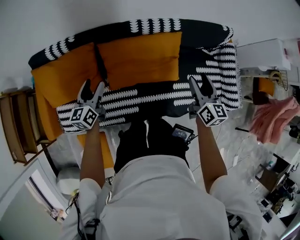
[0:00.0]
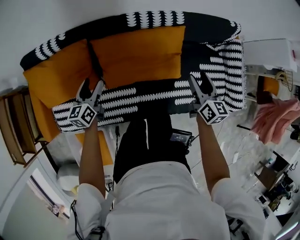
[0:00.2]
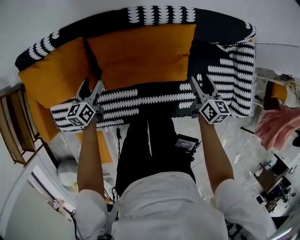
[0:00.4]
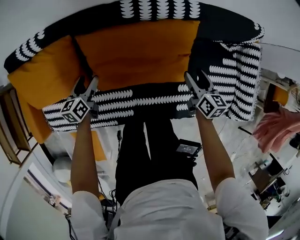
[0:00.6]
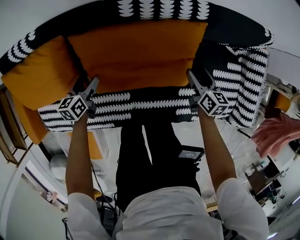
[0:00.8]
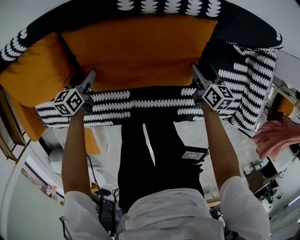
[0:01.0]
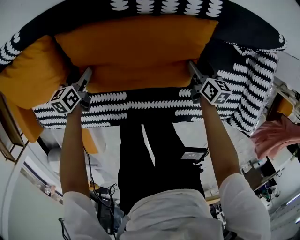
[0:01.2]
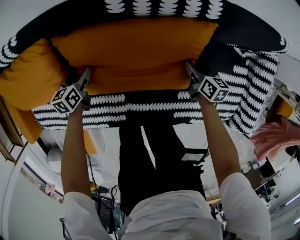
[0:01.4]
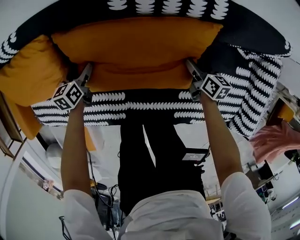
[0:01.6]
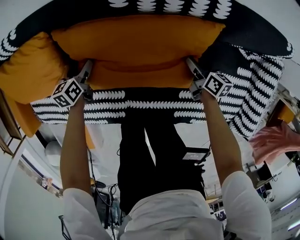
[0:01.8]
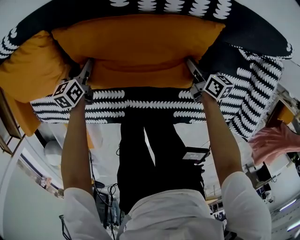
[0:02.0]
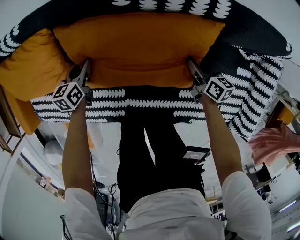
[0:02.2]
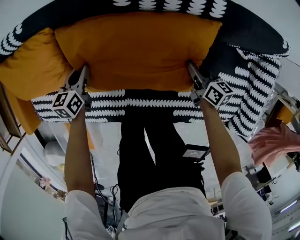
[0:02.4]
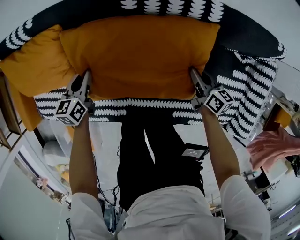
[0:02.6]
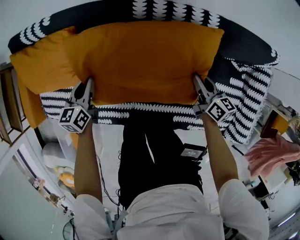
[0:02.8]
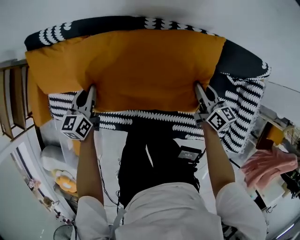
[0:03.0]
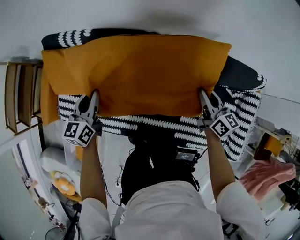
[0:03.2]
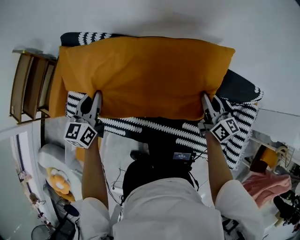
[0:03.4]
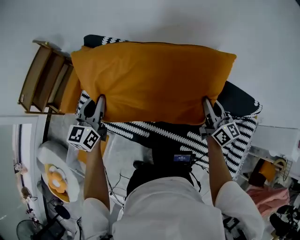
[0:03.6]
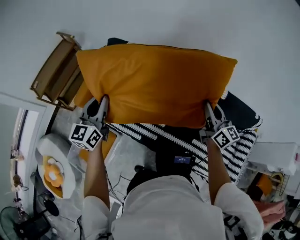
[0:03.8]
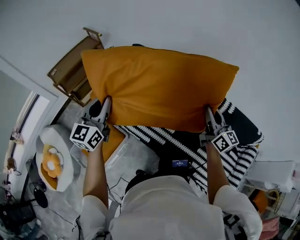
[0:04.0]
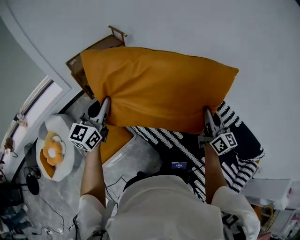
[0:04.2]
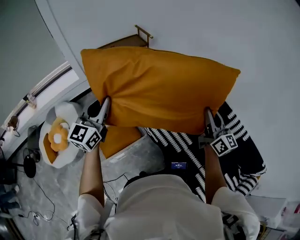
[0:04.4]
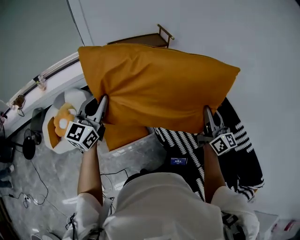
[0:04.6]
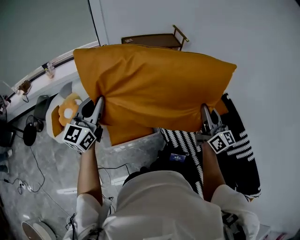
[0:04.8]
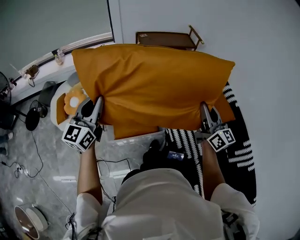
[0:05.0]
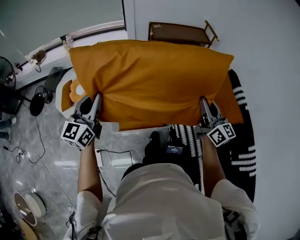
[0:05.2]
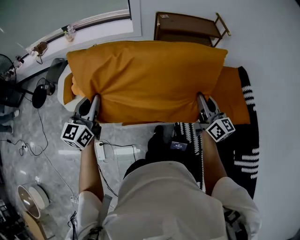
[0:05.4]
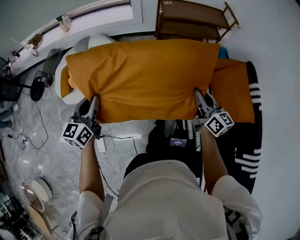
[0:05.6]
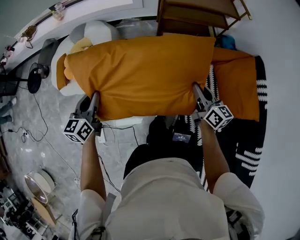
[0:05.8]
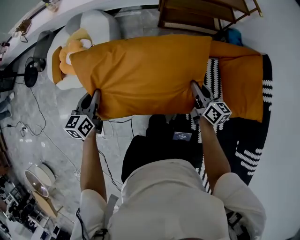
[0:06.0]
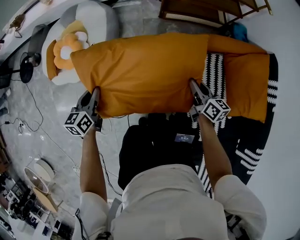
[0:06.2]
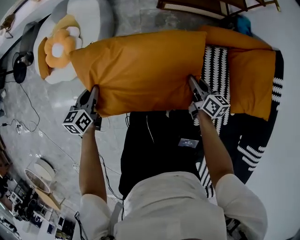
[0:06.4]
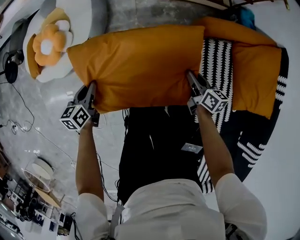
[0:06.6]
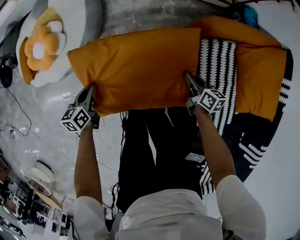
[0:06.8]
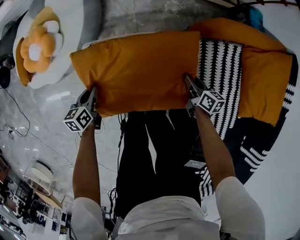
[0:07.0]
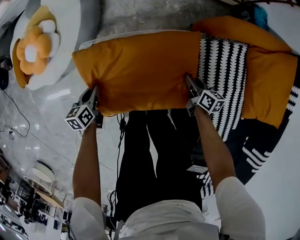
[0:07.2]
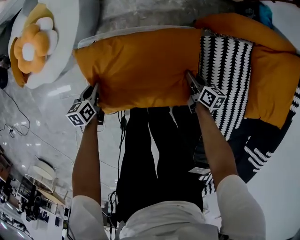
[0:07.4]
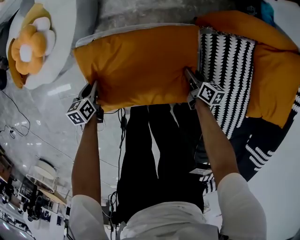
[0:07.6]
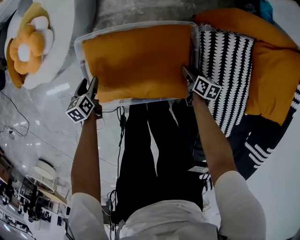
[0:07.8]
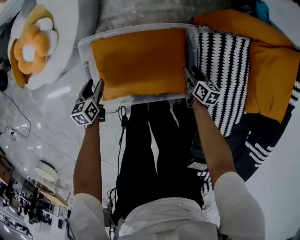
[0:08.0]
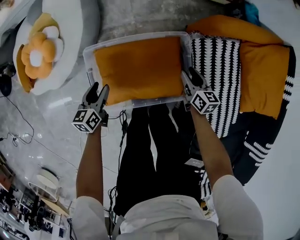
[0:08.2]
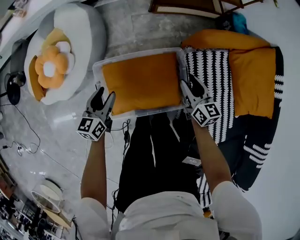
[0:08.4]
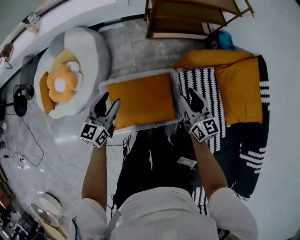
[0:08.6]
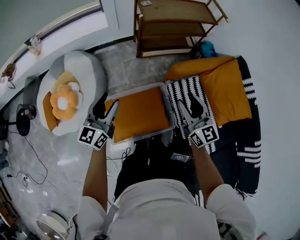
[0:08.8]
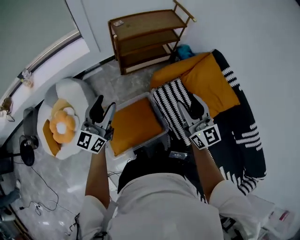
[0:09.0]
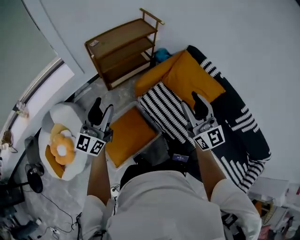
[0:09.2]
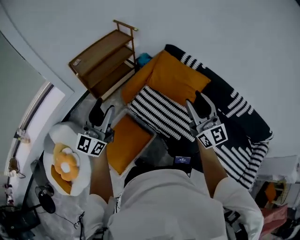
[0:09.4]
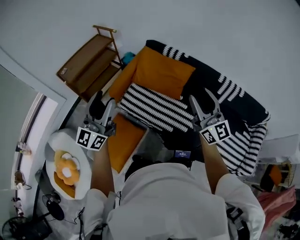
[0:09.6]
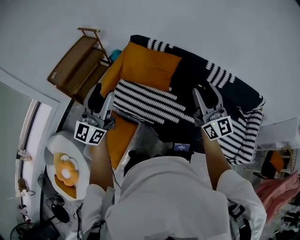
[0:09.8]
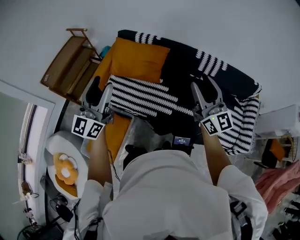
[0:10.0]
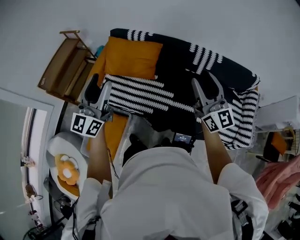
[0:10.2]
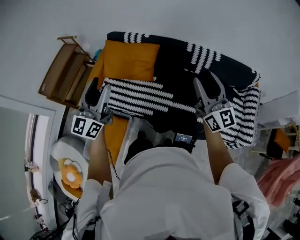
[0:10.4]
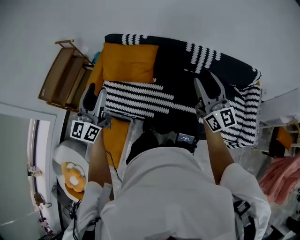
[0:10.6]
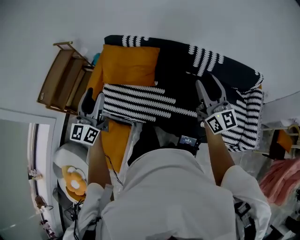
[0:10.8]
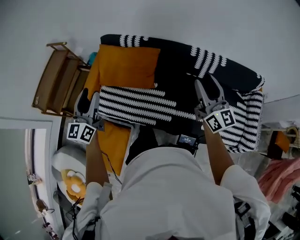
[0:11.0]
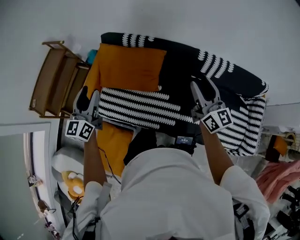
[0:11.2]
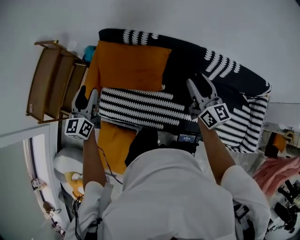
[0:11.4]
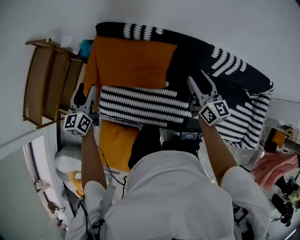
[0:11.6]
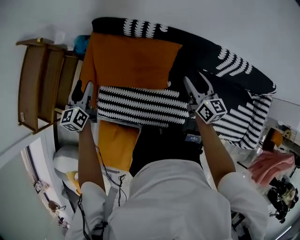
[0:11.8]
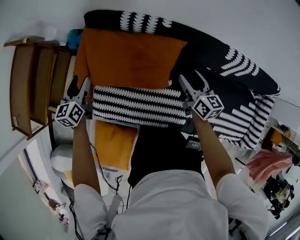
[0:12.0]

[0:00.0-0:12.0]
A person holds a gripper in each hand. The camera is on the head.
0:00.0 to 0:01.6: The left gripper moves downward, roughly 35 cm, and tips its fingers downward by approximately 30 degrees. Meanwhile the right gripper heads downward and forward, covering about 50 cm, and swivels approximately 40 degrees.
0:01.6 to 0:03.0: Both grippers travel together upward, some 25 cm. The right gripper changes its angle by approximately 20 degrees, and closes. Meanwhile the left gripper changes its angle by roughly 20 degrees, and closes its fingers.
0:03.0 to 0:04.4: The pair of grippers is taken about 60 cm. The left gripper angles its fingers upward, by some 30 degrees; the right gripper tilts its fingers approximately 30 degrees upward.
0:04.4 to 0:06.0: The left gripper moves downward, roughly 40 cm, and angles its fingers downward, by some 30 degrees, while the right gripper moves about 60 cm, and angles its fingers downward, by about 30 degrees.
0:06.0 to 0:07.6: Both grippers travel together downward, about 40 cm. The right gripper rotates approximately 30 degrees, while the left gripper swivels about 30 degrees.
0:07.6 to 0:09.0: The grippers both shift upward by some 60 cm. The left gripper tips its fingers upward by roughly 60 degrees, and opens its fingers. The right gripper angles its fingers upward, by approximately 50 degrees.
0:09.0 to 0:10.4: Both grippers are carried roughly 60 cm. The right gripper swivels some 50 degrees. The left gripper turns by approximately 40 degrees.
0:10.4 to 0:12.0: The two grippers travel together, forward and to the left, approximately 50 cm. The two grippers go approximately 40 cm downward. The right gripper tilts its fingers some 40 degrees downward. The left gripper points its fingers approximately 40 degrees further downward.

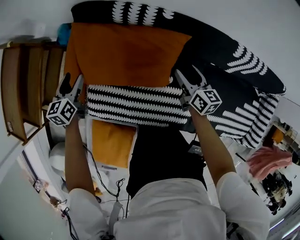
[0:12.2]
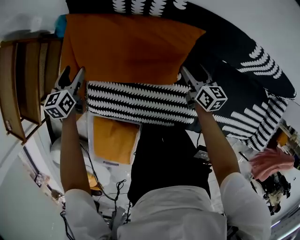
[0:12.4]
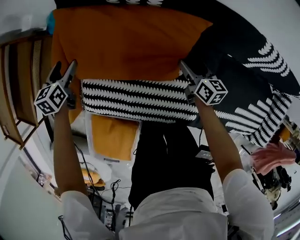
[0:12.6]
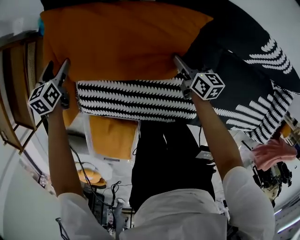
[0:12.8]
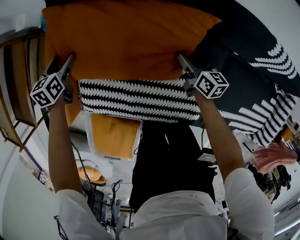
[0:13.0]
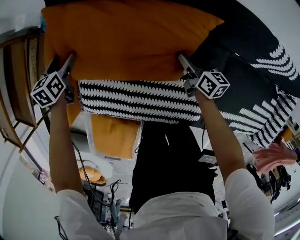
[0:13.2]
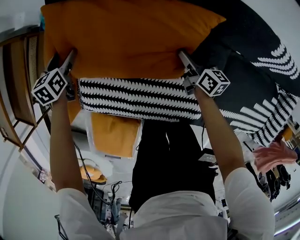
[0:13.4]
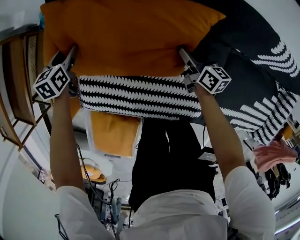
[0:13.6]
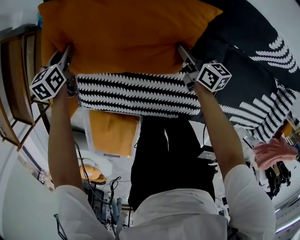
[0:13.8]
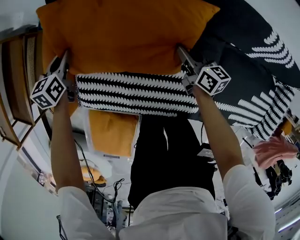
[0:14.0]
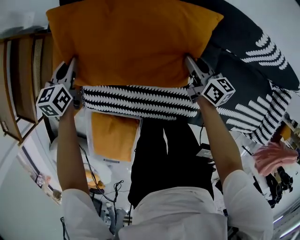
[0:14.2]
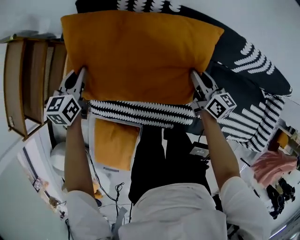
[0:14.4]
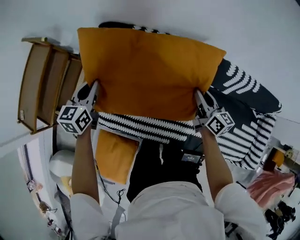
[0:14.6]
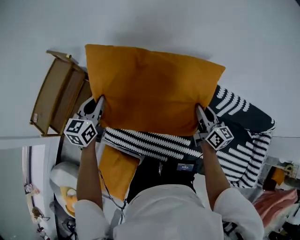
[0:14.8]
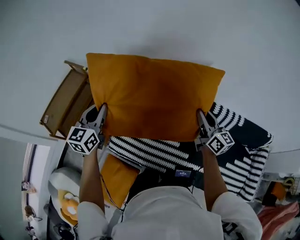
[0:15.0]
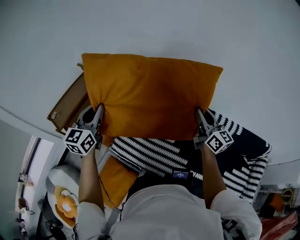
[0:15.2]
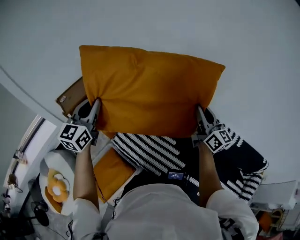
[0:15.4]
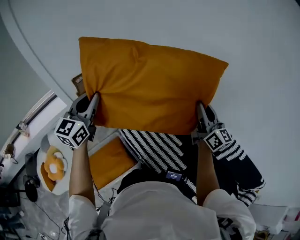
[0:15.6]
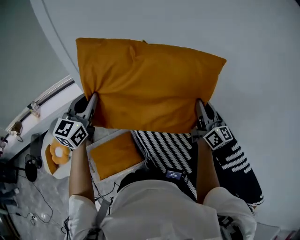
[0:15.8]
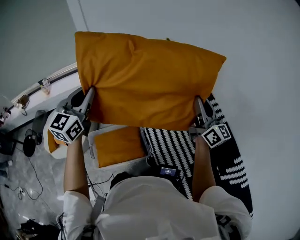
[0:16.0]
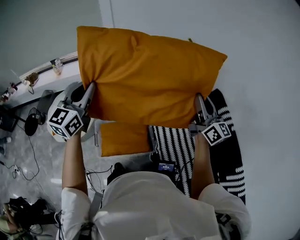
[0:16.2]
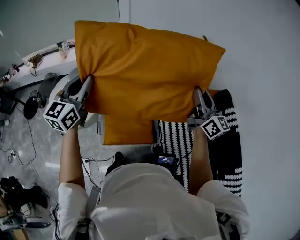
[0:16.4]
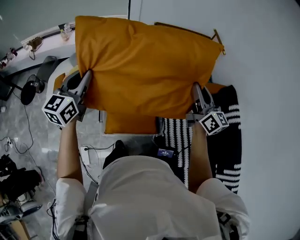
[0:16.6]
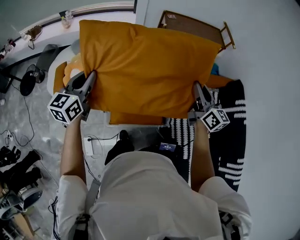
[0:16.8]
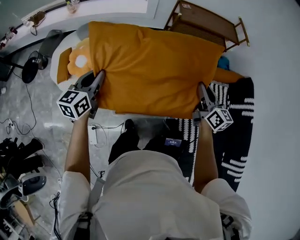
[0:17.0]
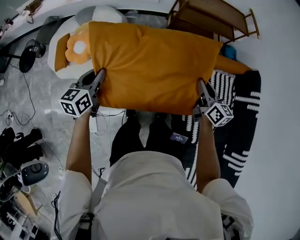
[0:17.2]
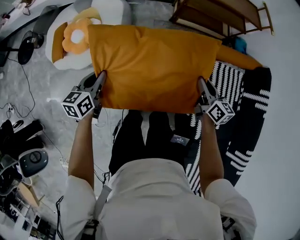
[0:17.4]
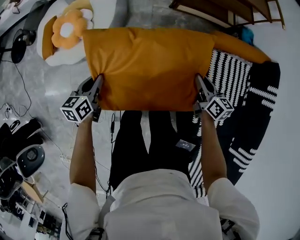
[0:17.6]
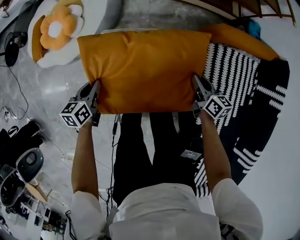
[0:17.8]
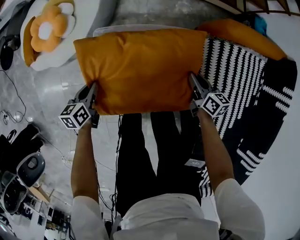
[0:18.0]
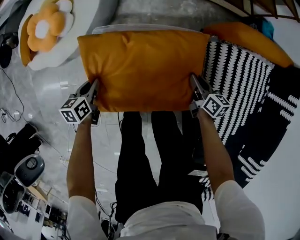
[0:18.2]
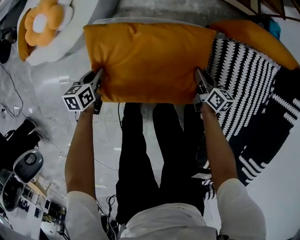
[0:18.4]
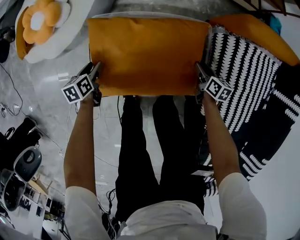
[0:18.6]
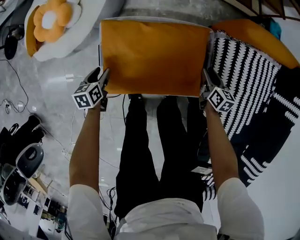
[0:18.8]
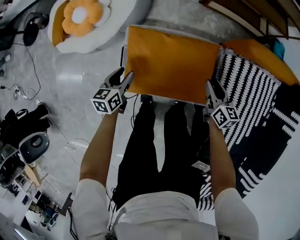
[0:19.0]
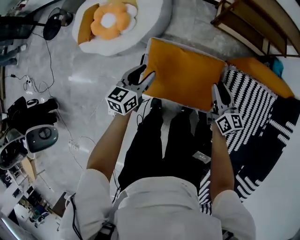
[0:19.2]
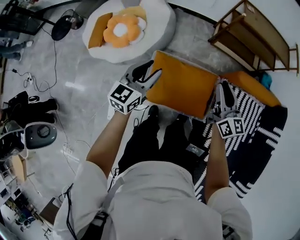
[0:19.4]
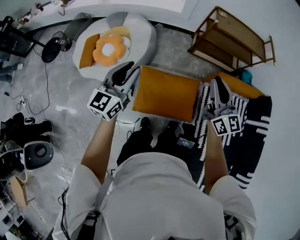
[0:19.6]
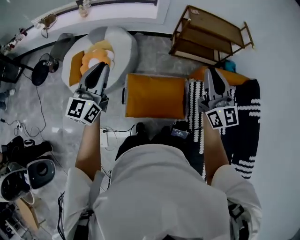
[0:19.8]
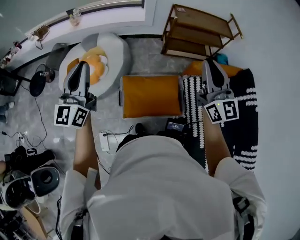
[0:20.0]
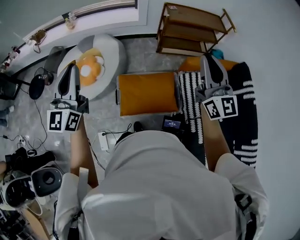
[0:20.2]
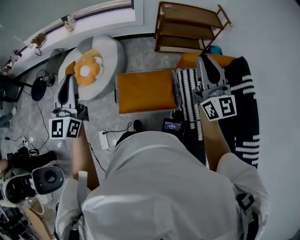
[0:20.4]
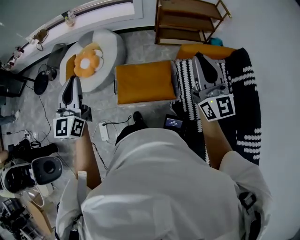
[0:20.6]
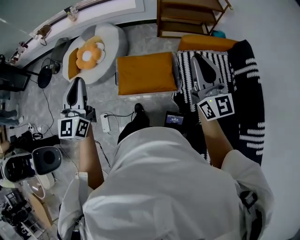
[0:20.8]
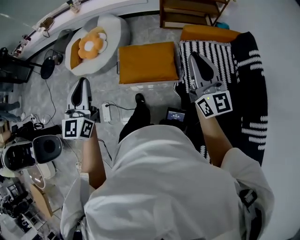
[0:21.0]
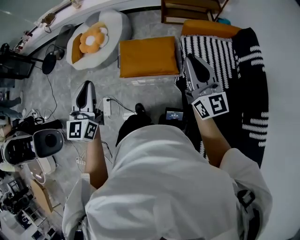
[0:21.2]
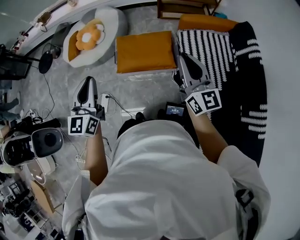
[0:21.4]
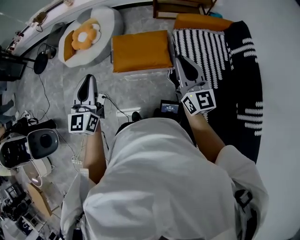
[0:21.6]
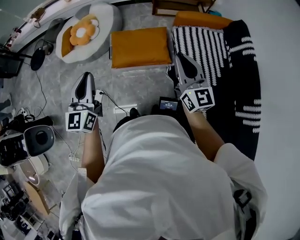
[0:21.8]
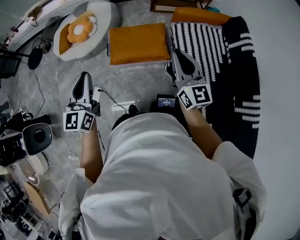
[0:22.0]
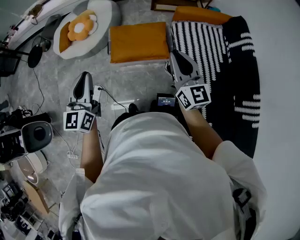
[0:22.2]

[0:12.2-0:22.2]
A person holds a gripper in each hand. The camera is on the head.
0:12.2 to 0:13.6: Both grippers move downward, about 15 cm.
0:13.6 to 0:15.0: The two grippers go some 50 cm upward. The left gripper angles its fingers upward, by approximately 40 degrees, and closes its fingers, while the right gripper angles its fingers upward, by some 30 degrees, and closes up.
0:15.0 to 0:16.4: The right gripper shifts by about 50 cm, and swivels roughly 60 degrees. Meanwhile the left gripper changes place by approximately 70 cm, and swivels about 60 degrees.
0:16.4 to 0:18.0: Both grippers move downward, about 70 cm. The right gripper tilts its fingers some 50 degrees downward; the left gripper tips its fingers downward by approximately 40 degrees.
0:18.0 to 0:19.4: The left gripper shifts some 35 cm upward, angles its fingers upward, by about 30 degrees, and opens. Meanwhile the right gripper travels upward and to the left by roughly 40 cm, and swivels about 40 degrees.
0:19.4 to 0:20.8: The right gripper goes roughly 40 cm backward, upward and to the right, and rotates some 30 degrees; the left gripper shifts approximately 40 cm backward and upward, swivels approximately 20 degrees, and closes up.
0:20.8 to 0:22.2: The left gripper goes about 20 cm backward and downward; the right gripper is displaced backward, downward and to the left by roughly 20 cm.

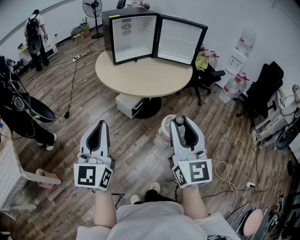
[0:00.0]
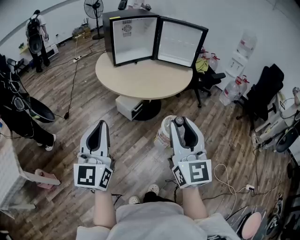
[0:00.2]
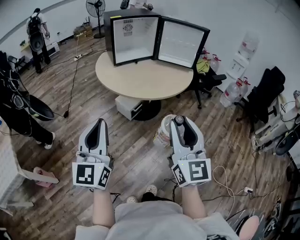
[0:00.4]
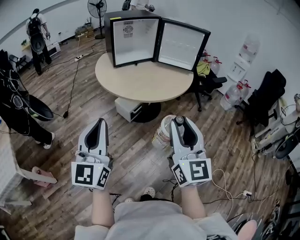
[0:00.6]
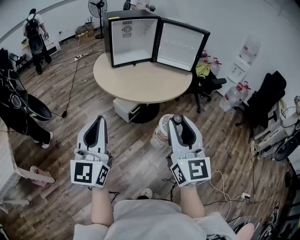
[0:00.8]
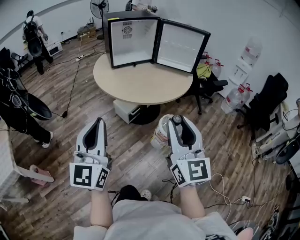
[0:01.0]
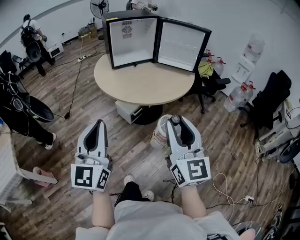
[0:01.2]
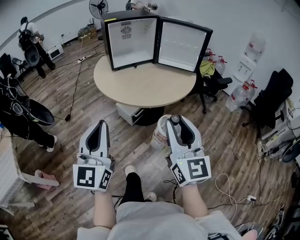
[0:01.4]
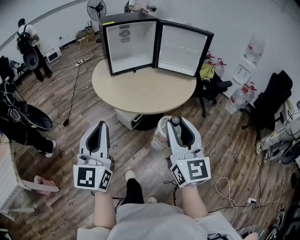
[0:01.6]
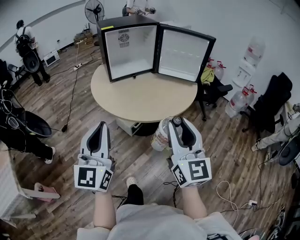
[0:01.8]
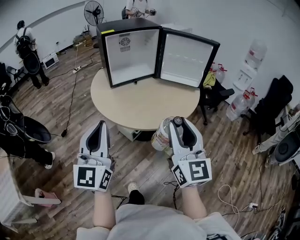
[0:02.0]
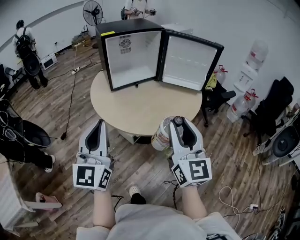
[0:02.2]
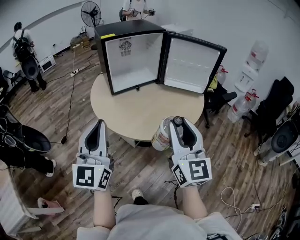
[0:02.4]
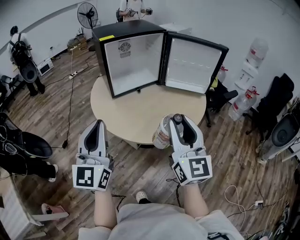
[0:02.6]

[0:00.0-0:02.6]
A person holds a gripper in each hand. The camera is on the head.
0:00.0 to 0:01.2: The left gripper heads to the right, covering about 5 cm. The right gripper heads forward and to the right, covering approximately 10 cm.
0:01.2 to 0:02.6: The grippers both shift forward by approximately 30 cm.
